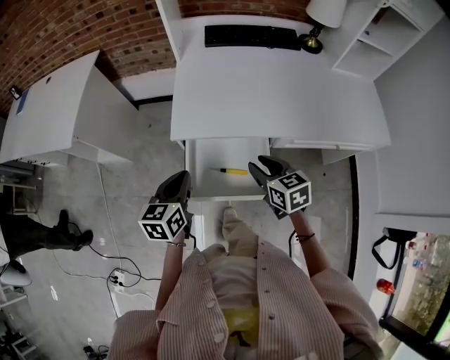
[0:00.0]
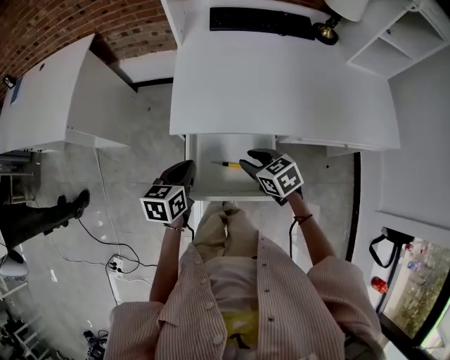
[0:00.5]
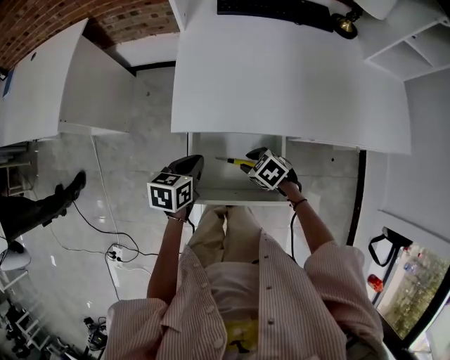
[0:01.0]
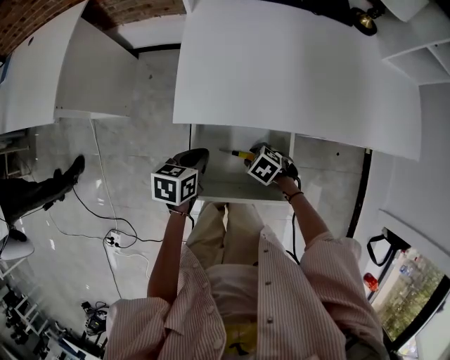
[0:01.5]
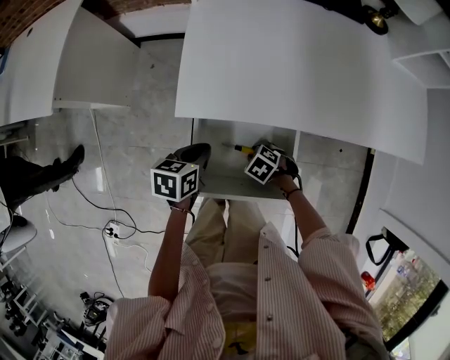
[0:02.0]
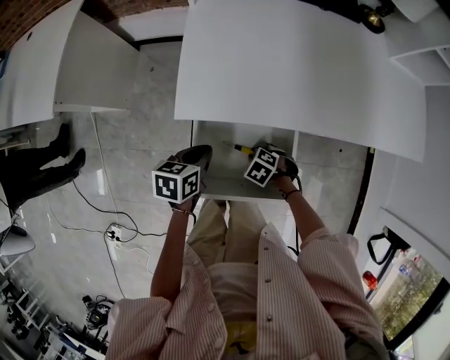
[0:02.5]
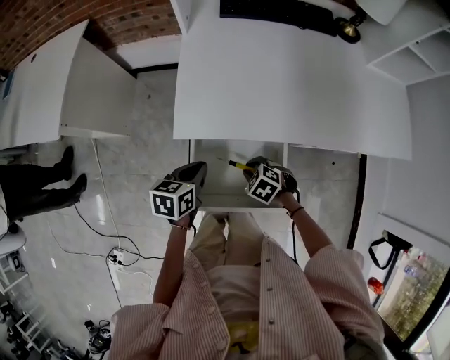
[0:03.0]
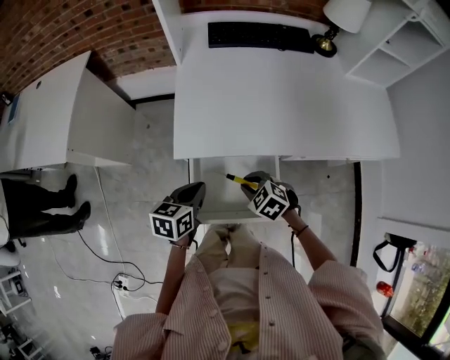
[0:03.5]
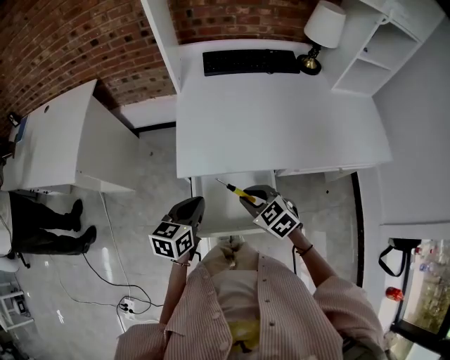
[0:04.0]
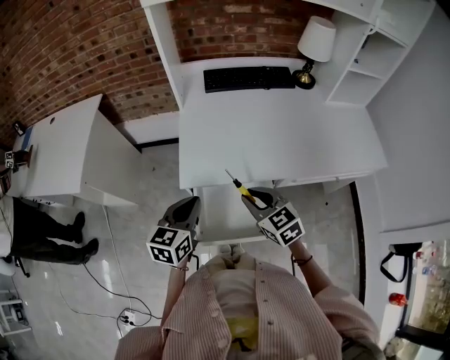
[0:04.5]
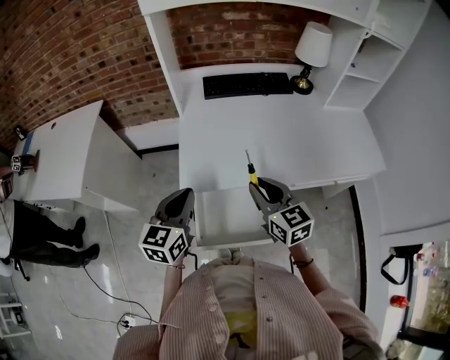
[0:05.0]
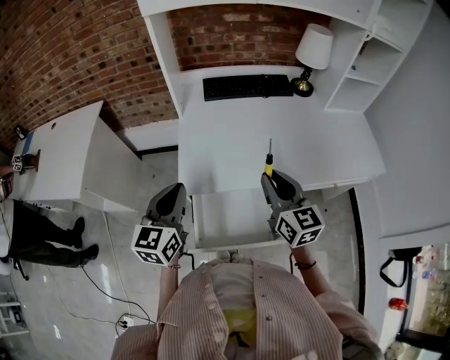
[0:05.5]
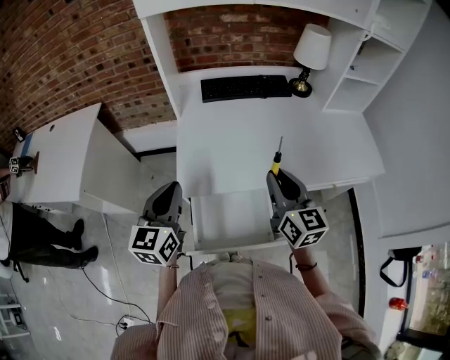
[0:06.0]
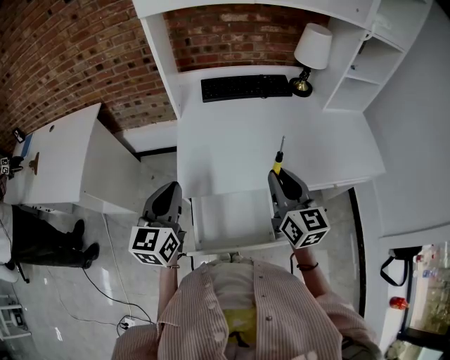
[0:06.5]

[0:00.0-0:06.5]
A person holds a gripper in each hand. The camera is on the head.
0:00.0 to 0:02.0: The left gripper goes approximately 15 cm downward, and rotates about 30 degrees. The right gripper moves downward, approximately 25 cm, and points its fingers roughly 40 degrees further downward.
0:02.0 to 0:04.5: The right gripper moves upward, about 30 cm, and tilts its fingers some 50 degrees upward, while the left gripper travels upward by some 20 cm, and turns by about 30 degrees.
0:04.5 to 0:06.5: The left gripper heads upward and forward, covering approximately 10 cm, while the right gripper moves upward, to the right and forward, some 15 cm, and swivels about 40 degrees.

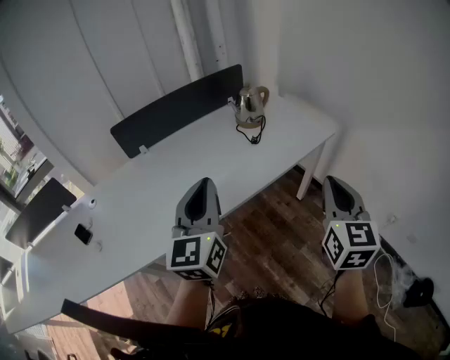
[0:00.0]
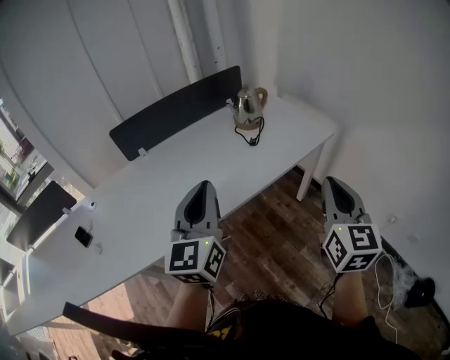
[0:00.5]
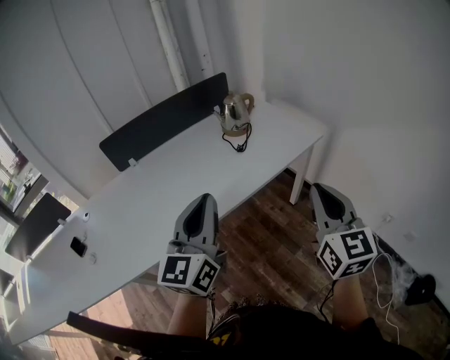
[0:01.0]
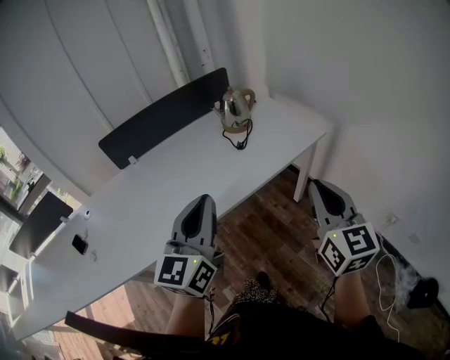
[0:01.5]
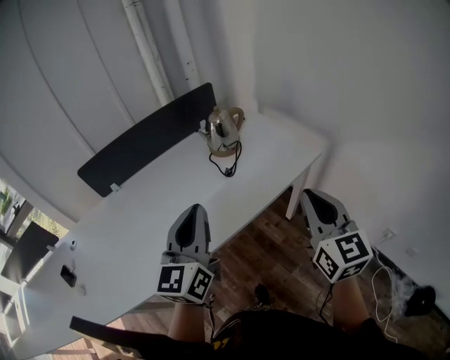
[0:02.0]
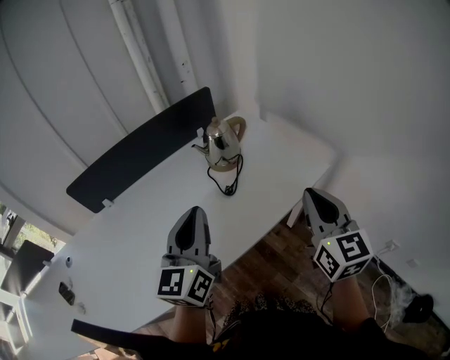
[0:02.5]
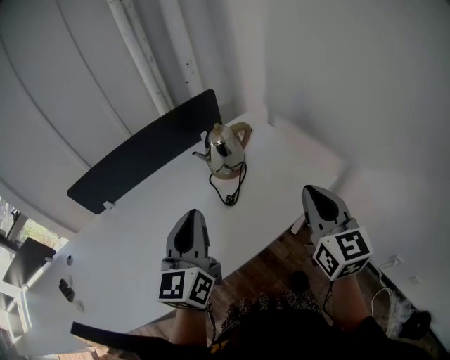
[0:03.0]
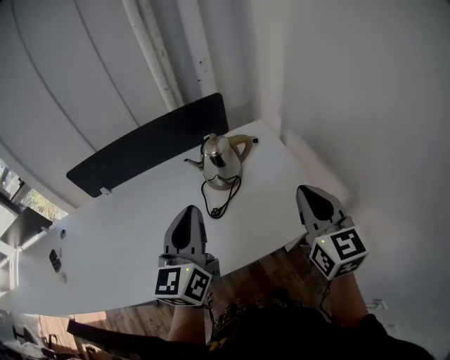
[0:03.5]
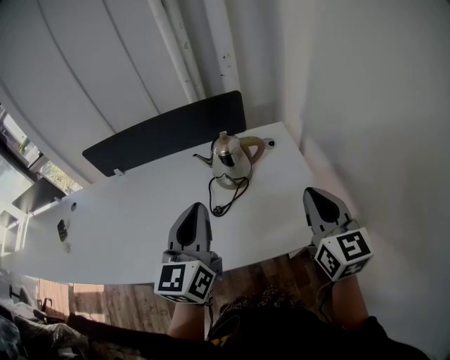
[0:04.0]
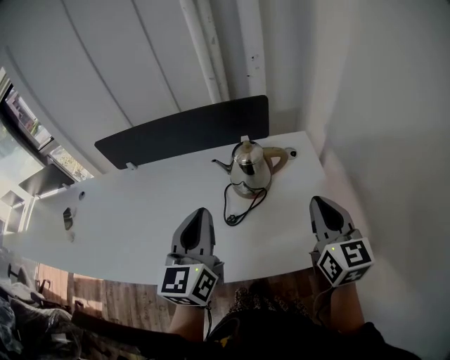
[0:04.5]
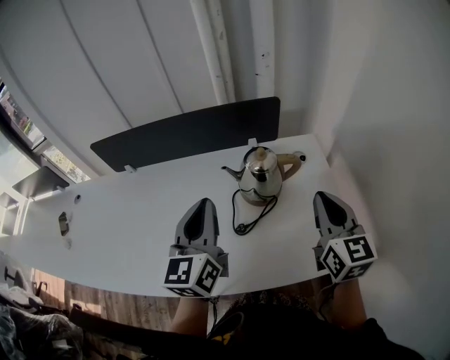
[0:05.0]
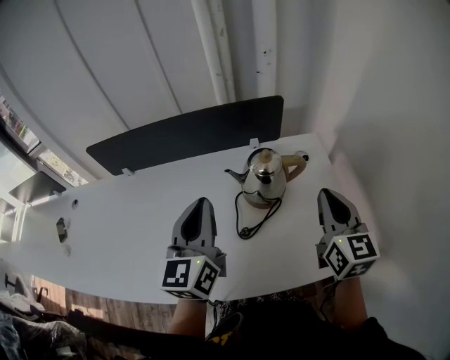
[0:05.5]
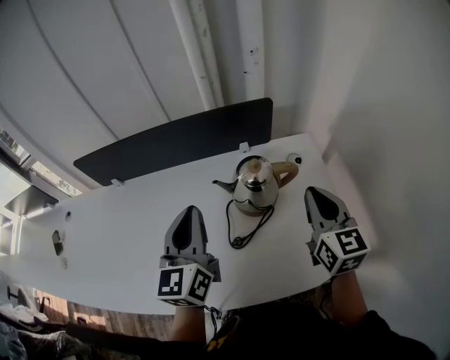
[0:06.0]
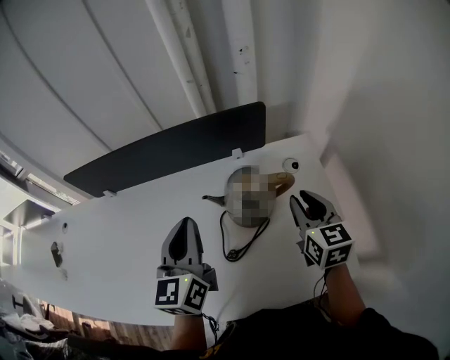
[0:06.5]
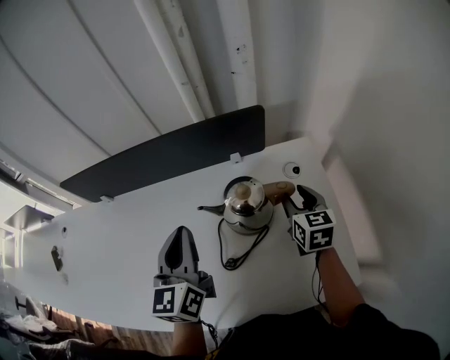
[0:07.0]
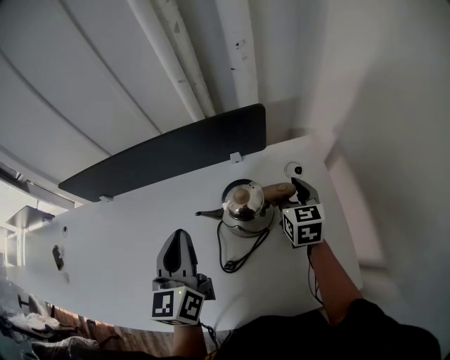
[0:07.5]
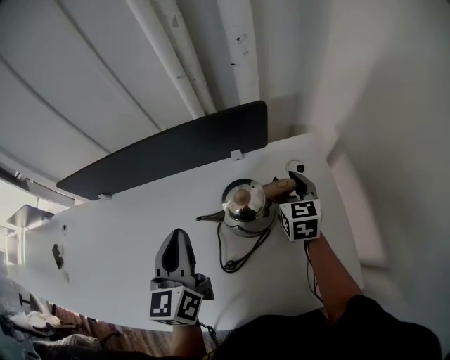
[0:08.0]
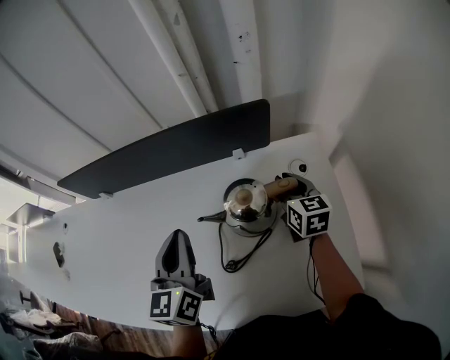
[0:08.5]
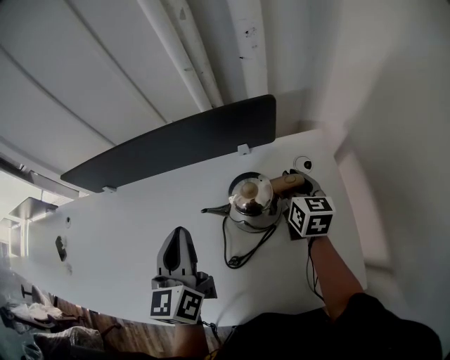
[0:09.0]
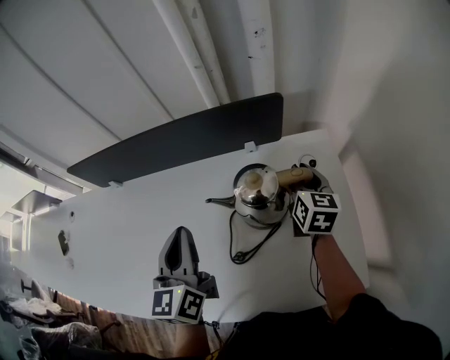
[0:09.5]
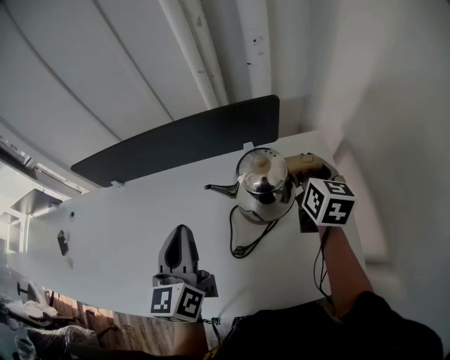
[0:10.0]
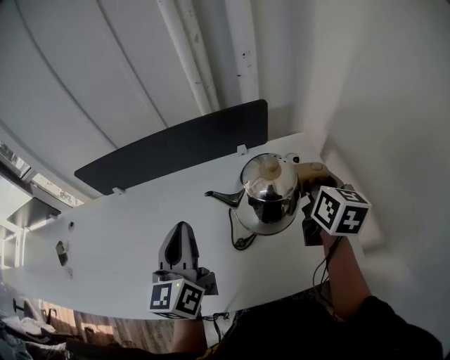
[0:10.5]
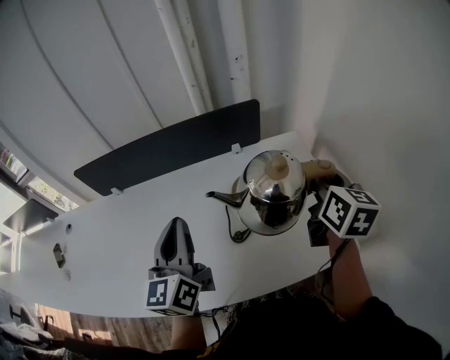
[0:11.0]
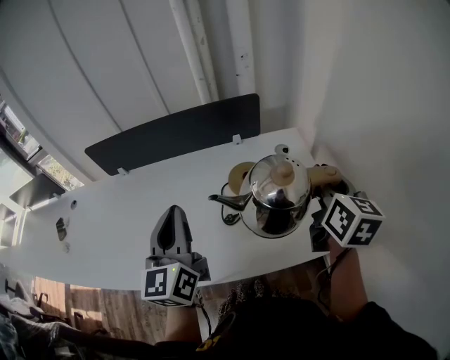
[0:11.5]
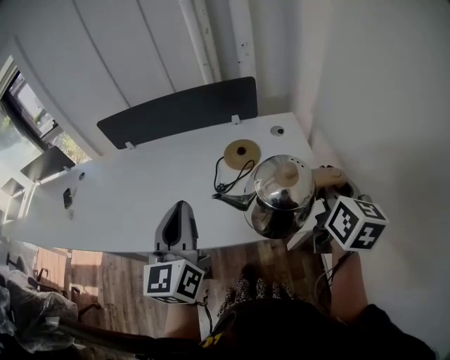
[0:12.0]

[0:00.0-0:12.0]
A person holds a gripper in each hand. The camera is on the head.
0:00.0 to 0:02.0: The right gripper shifts about 15 cm forward. Meanwhile the left gripper goes some 15 cm forward and to the right.
0:02.0 to 0:04.0: The left gripper changes place by roughly 25 cm, and rotates about 30 degrees. The right gripper shifts by roughly 35 cm, and turns by some 30 degrees.
0:04.0 to 0:06.0: The left gripper shifts roughly 20 cm forward and to the left, while the right gripper shifts about 15 cm forward.
0:06.0 to 0:08.0: The right gripper moves forward and downward, about 25 cm, and opens. The left gripper heads forward and downward, covering roughly 10 cm.
0:08.0 to 0:10.0: The right gripper travels upward by about 10 cm, and closes its fingers. Meanwhile the left gripper changes place by roughly 5 cm.
0:10.0 to 0:12.0: The two grippers go roughly 30 cm backward.

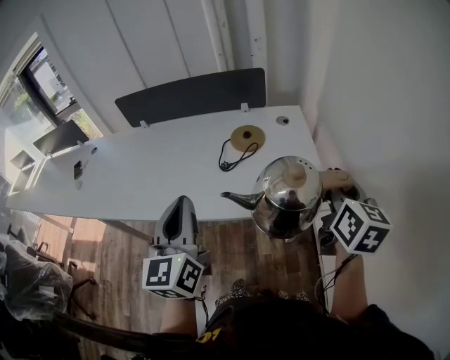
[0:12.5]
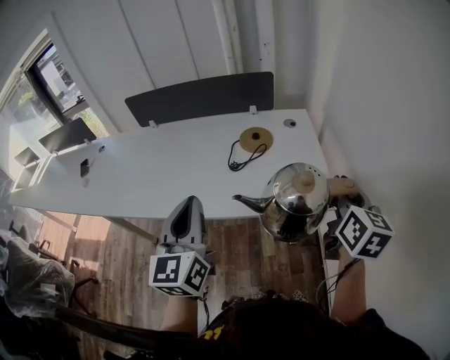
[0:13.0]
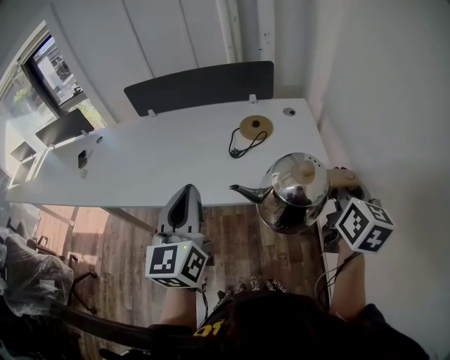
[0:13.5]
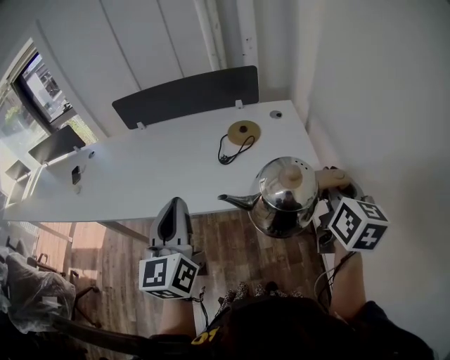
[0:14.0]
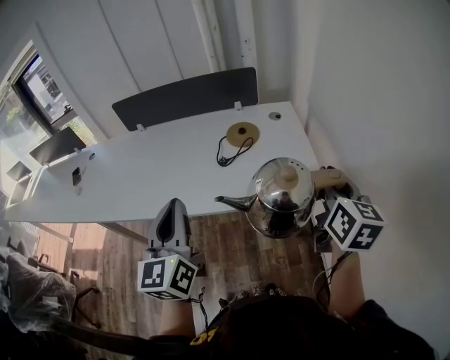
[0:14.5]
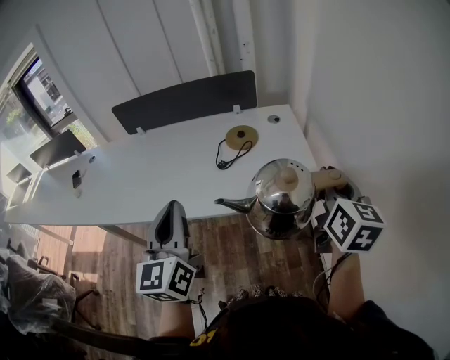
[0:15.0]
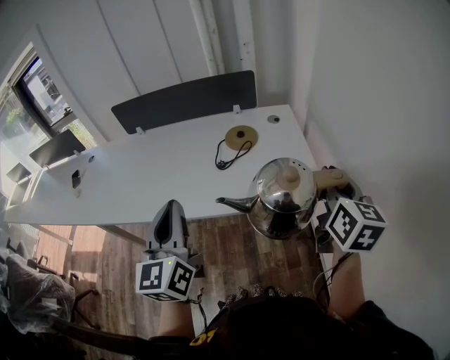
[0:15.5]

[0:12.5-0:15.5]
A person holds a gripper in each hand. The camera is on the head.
0:12.5 to 0:14.0: The right gripper travels backward by about 5 cm.
0:14.0 to 0:15.5: The two grippers keep their place.

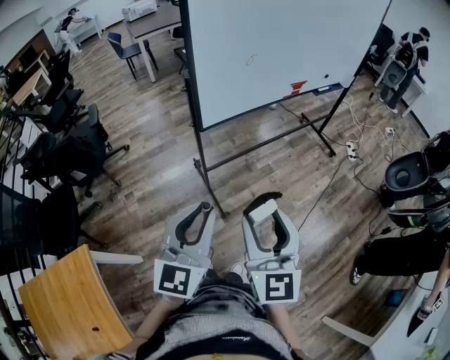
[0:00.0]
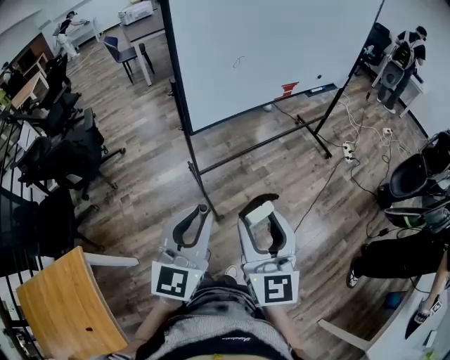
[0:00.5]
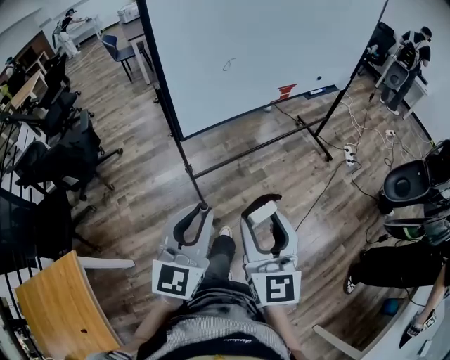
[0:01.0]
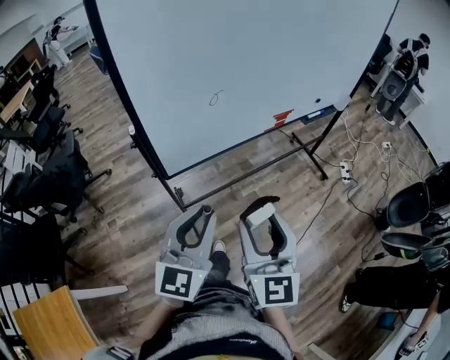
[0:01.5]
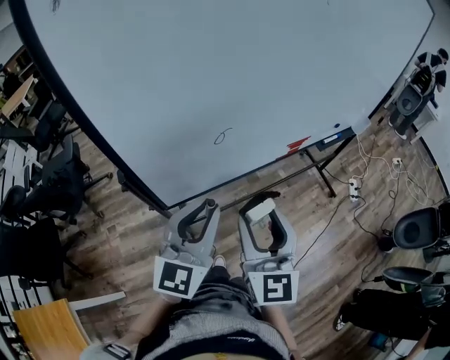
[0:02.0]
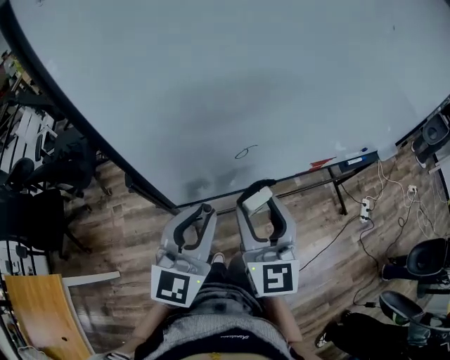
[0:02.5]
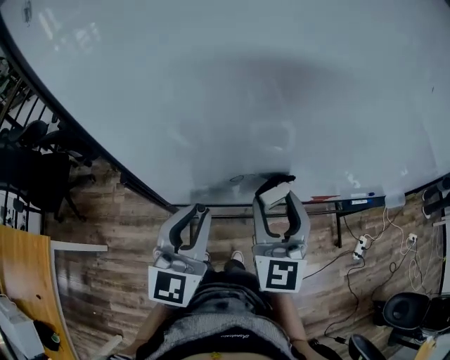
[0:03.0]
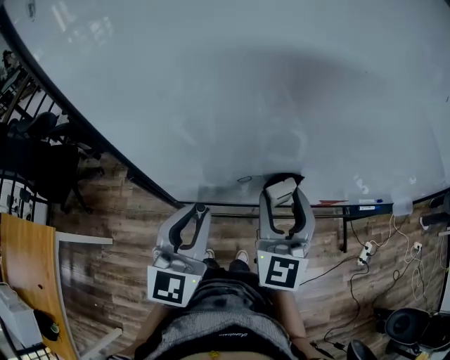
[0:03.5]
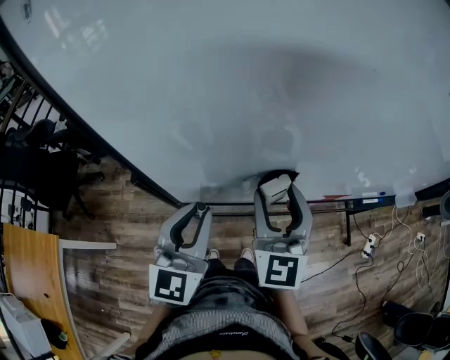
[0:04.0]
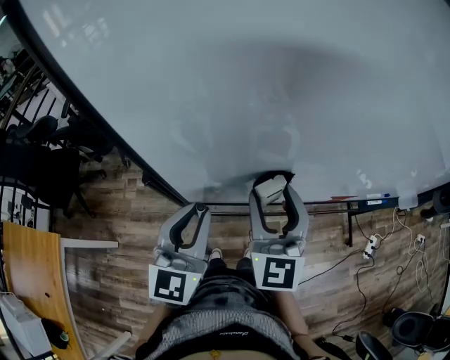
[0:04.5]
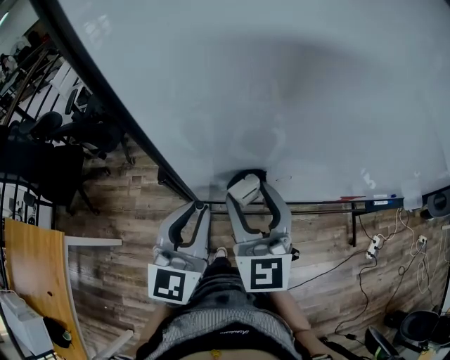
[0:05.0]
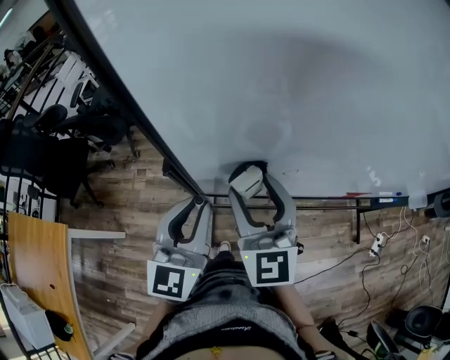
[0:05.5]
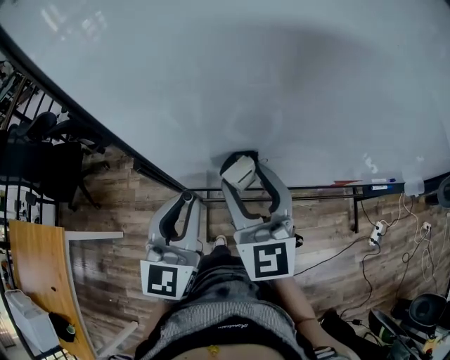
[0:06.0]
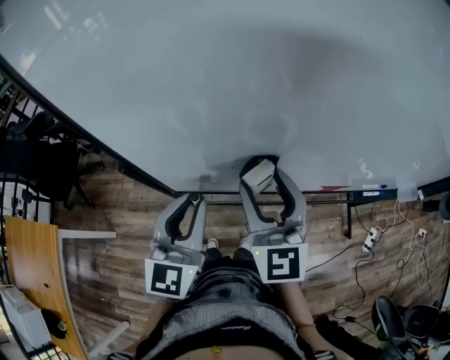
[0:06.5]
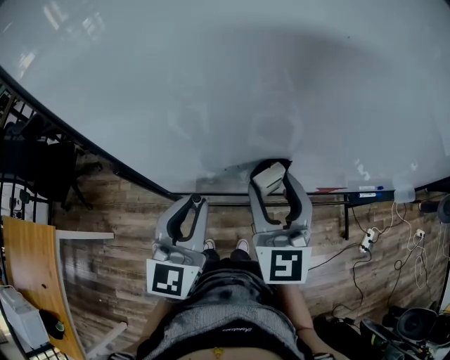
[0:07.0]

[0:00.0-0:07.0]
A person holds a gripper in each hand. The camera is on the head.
0:00.0 to 0:02.0: The two grippers go about 40 cm forward.
0:02.0 to 0:03.5: The left gripper heads forward, covering approximately 5 cm, and swivels about 30 degrees. Meanwhile the right gripper travels forward by approximately 20 cm, and changes its angle by approximately 20 degrees.
0:03.5 to 0:05.0: The right gripper shifts about 15 cm to the left, while the left gripper heads to the left, covering approximately 5 cm.
0:05.0 to 0:07.0: The left gripper heads to the right, covering about 10 cm; the right gripper goes some 15 cm to the right.
